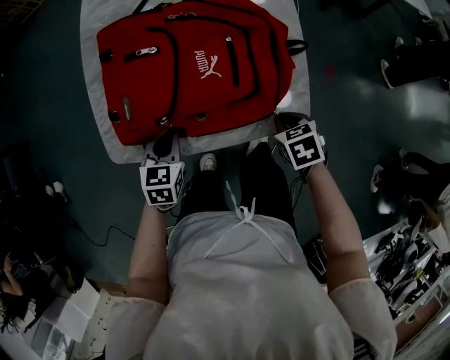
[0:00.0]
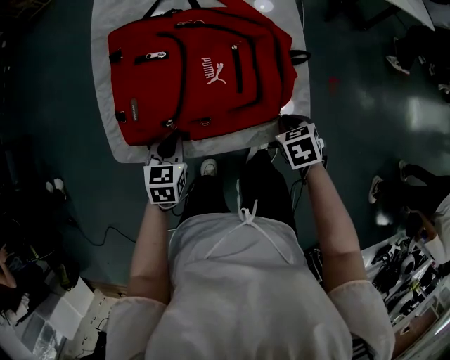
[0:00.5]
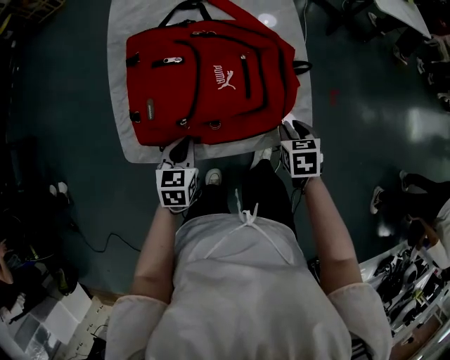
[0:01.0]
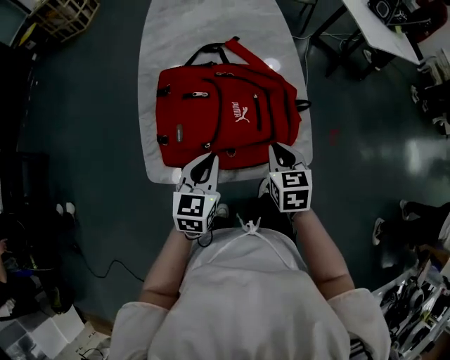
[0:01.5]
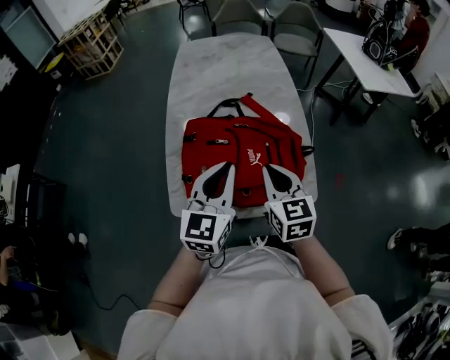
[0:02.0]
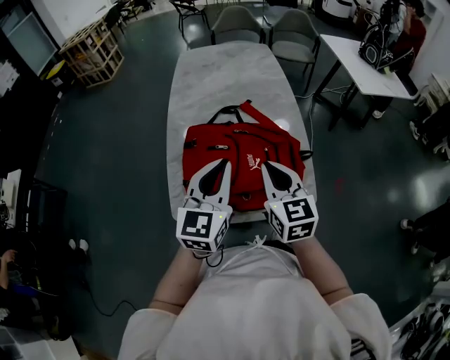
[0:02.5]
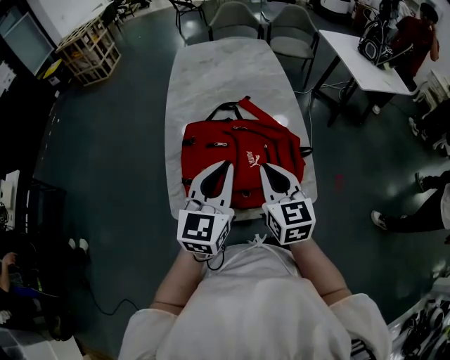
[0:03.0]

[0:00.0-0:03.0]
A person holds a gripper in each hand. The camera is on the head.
0:00.0 to 0:01.5: The right gripper heads upward and to the left, covering roughly 15 cm, rotates about 30 degrees, and opens, then closes again. The left gripper heads upward, covering roughly 15 cm.
0:01.5 to 0:03.0: The left gripper is displaced upward by roughly 20 cm, and swivels some 20 degrees; the right gripper is displaced upward and to the left by roughly 20 cm, and changes its angle by roughly 30 degrees.

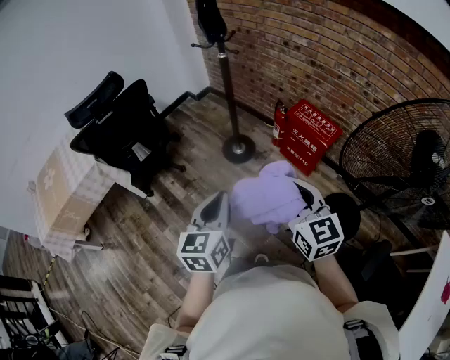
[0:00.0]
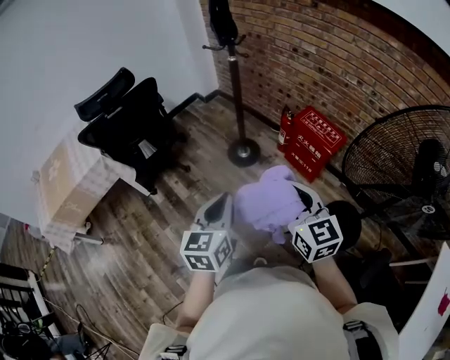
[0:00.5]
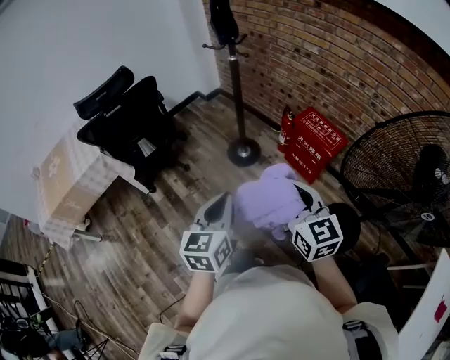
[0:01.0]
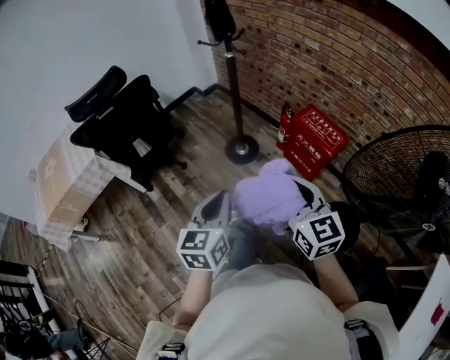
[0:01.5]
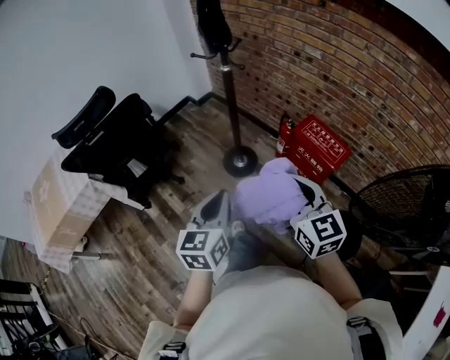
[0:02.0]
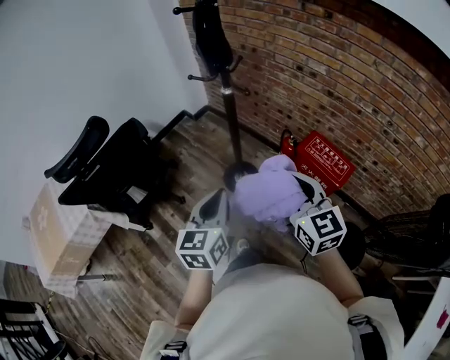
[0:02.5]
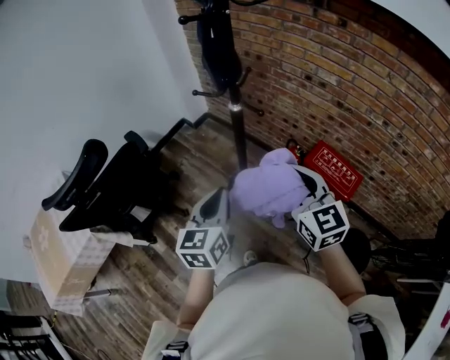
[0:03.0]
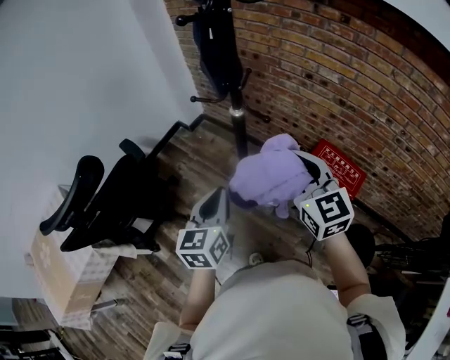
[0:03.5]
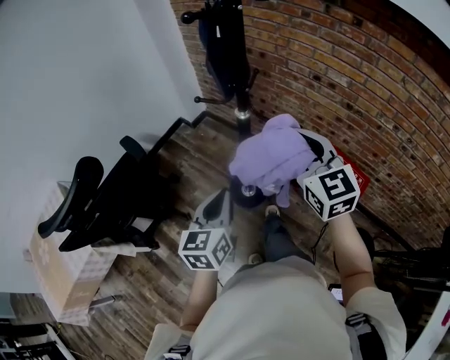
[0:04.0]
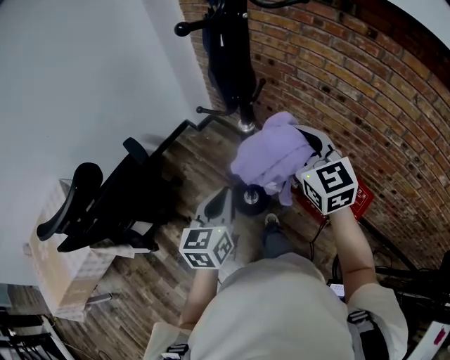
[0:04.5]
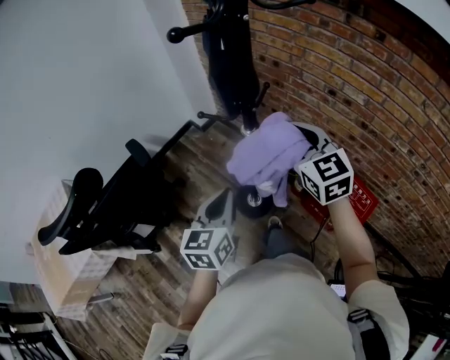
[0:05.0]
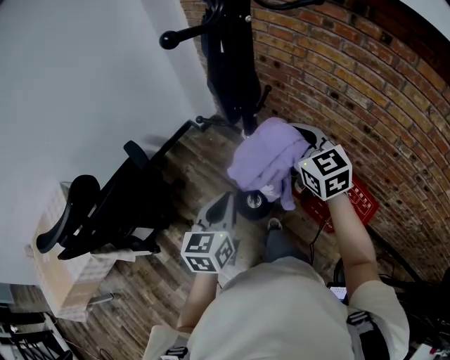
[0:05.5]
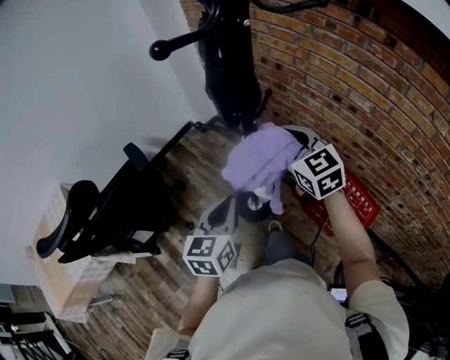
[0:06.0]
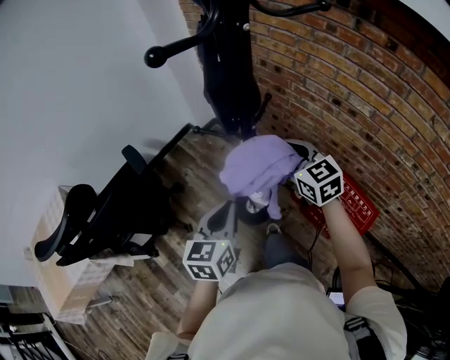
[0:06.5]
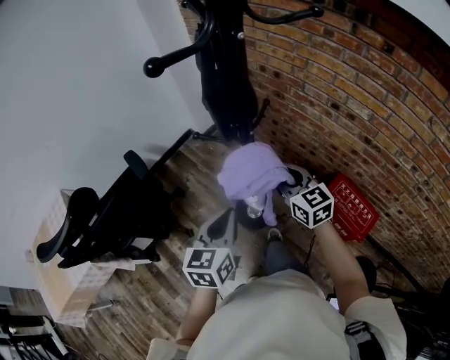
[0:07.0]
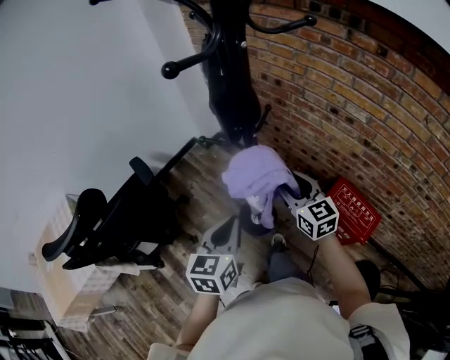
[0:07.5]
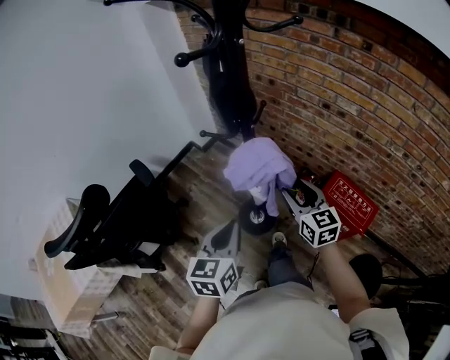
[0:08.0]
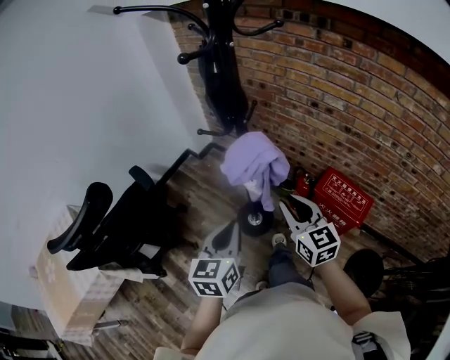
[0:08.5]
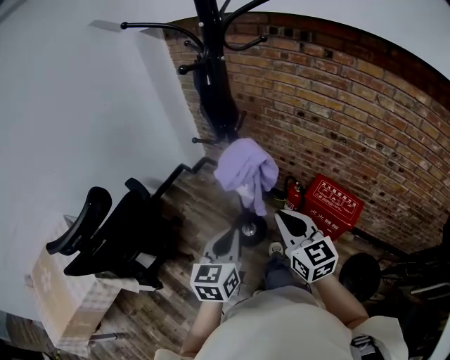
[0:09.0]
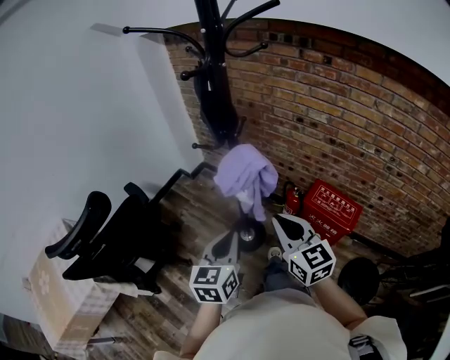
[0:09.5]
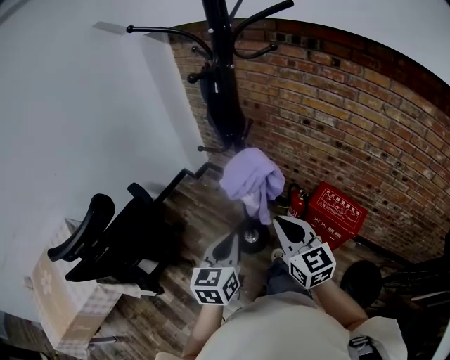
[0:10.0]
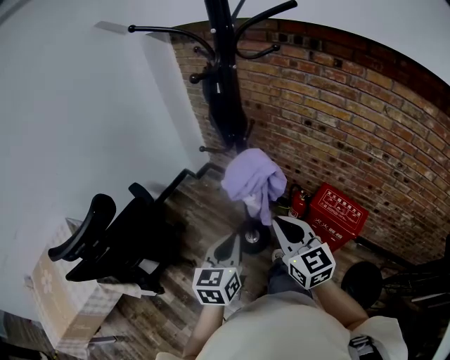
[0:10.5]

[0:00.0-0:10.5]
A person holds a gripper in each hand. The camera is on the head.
0:00.0 to 0:02.0: The grippers both shift forward by approximately 15 cm.
0:02.0 to 0:04.0: The two grippers go roughly 30 cm forward.
0:04.0 to 0:06.5: The right gripper moves forward and downward, roughly 20 cm; the left gripper travels forward by approximately 10 cm.
0:06.5 to 0:08.5: The right gripper is displaced backward by approximately 20 cm, and opens, then closes once more; the left gripper shifts some 10 cm backward.
0:08.5 to 0:10.5: The right gripper shifts by approximately 5 cm.

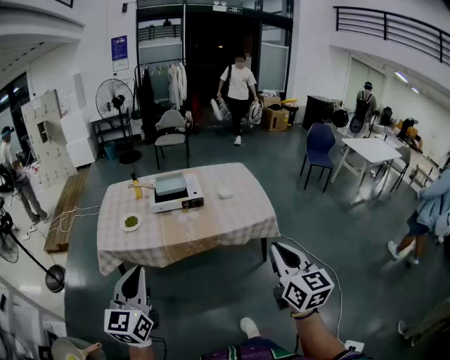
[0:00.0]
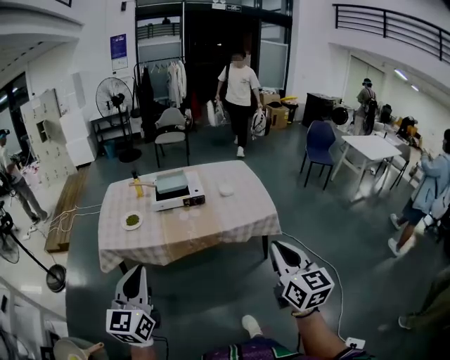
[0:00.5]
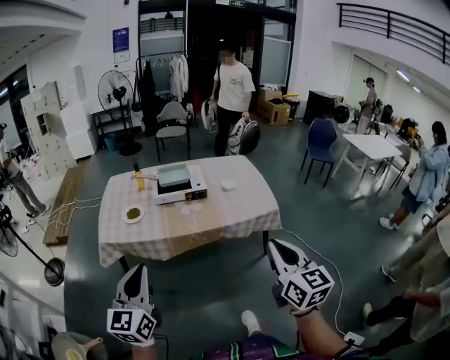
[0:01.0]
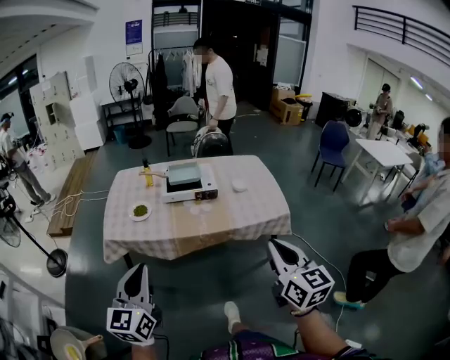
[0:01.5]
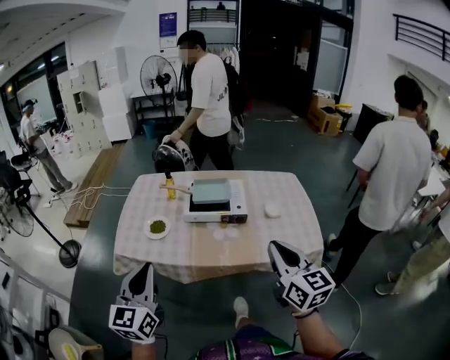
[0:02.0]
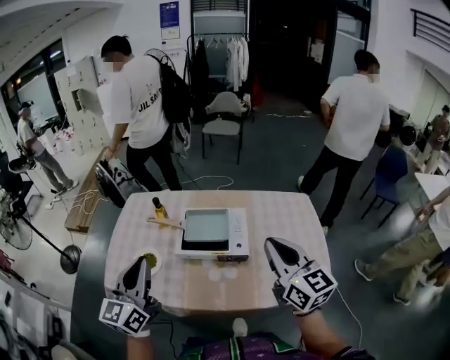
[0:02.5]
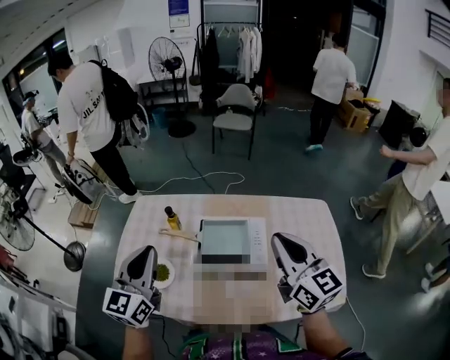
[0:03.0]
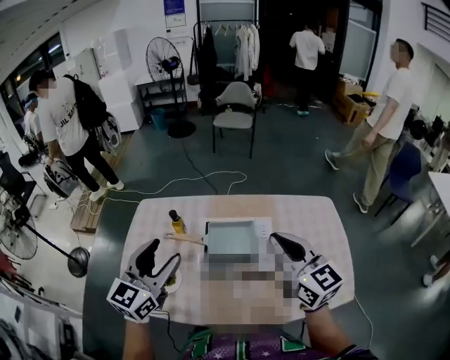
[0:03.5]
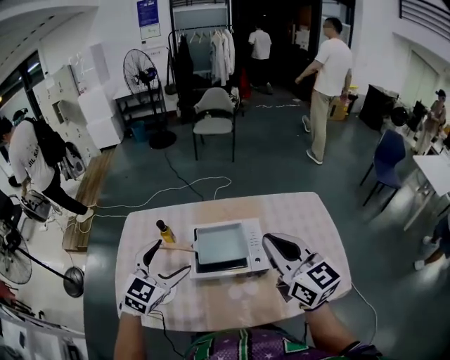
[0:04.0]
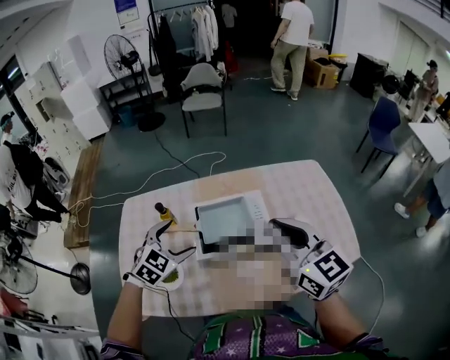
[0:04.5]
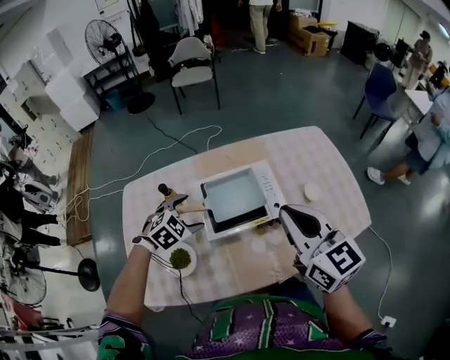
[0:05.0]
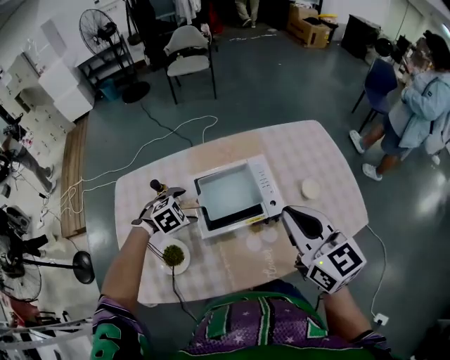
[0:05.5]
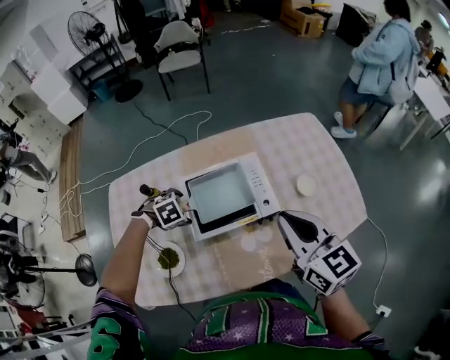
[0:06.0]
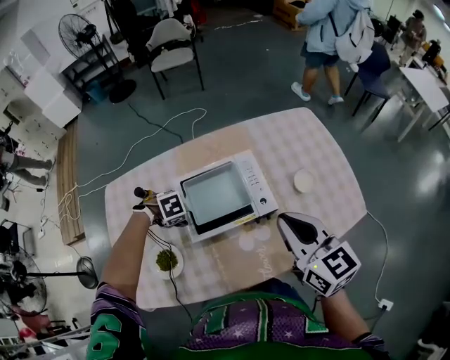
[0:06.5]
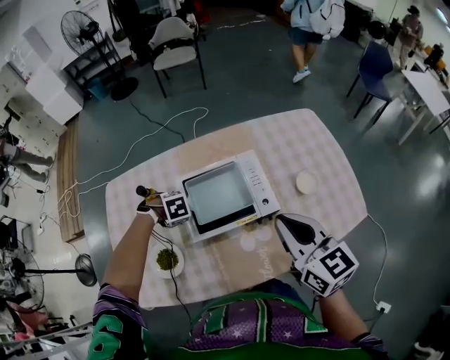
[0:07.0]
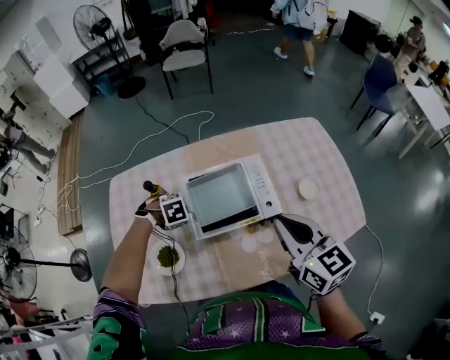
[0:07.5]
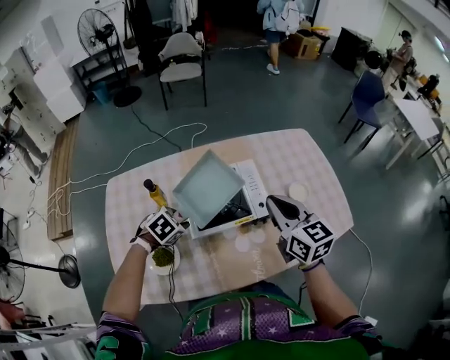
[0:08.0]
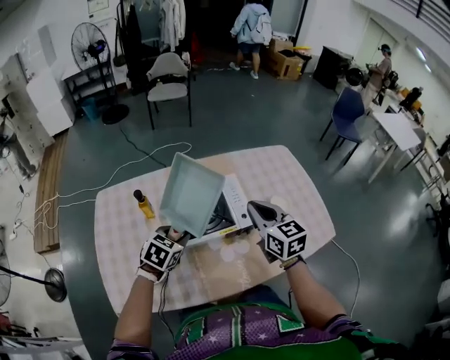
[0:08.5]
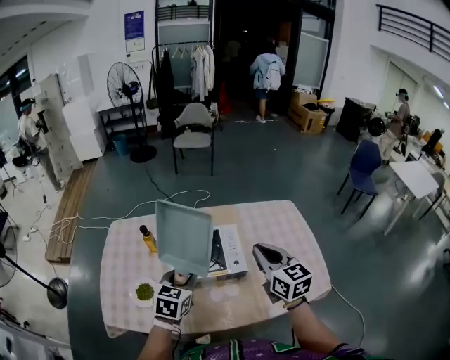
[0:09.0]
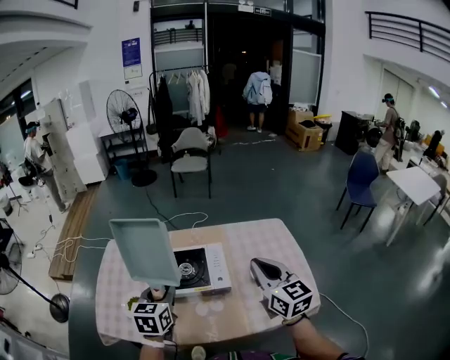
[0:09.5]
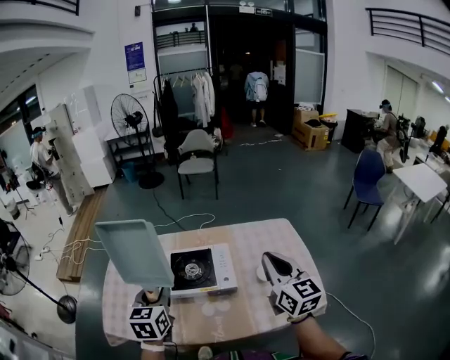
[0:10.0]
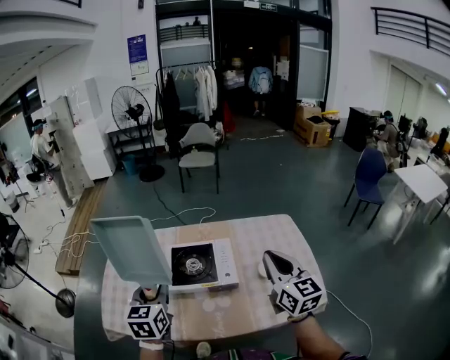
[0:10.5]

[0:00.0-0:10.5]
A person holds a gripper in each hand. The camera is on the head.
0:00.0 to 0:02.0: Both grippers are carried forward, roughly 60 cm.
0:02.0 to 0:04.0: Both grippers are carried forward, approximately 1 m. The left gripper turns by about 40 degrees, and opens.
0:04.0 to 0:06.5: The right gripper travels downward by roughly 20 cm, and swivels about 20 degrees. Meanwhile the left gripper heads downward, covering some 40 cm, and points its fingers roughly 60 degrees further downward.
0:06.5 to 0:08.5: The right gripper shifts by roughly 5 cm, while the left gripper is displaced upward by about 20 cm, points its fingers about 40 degrees further upward, and closes up.
0:08.5 to 0:10.5: The right gripper goes approximately 50 cm to the right, backward and upward. Meanwhile the left gripper travels upward, backward and to the right by roughly 50 cm, and changes its angle by approximately 50 degrees.

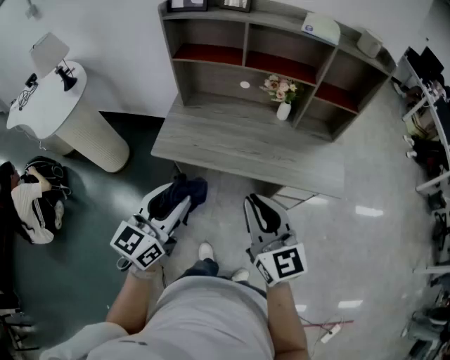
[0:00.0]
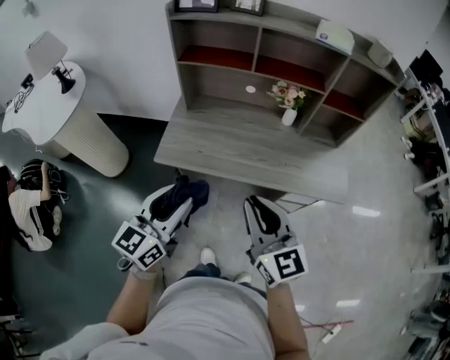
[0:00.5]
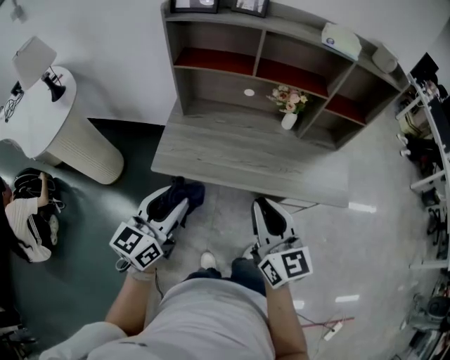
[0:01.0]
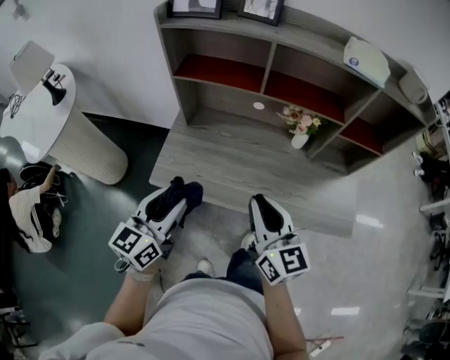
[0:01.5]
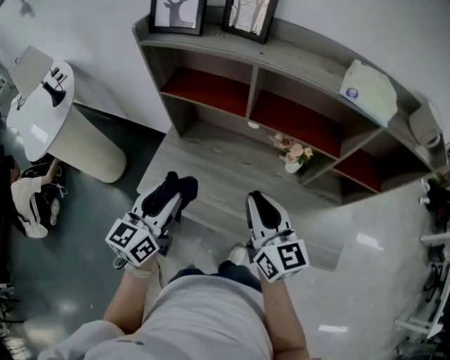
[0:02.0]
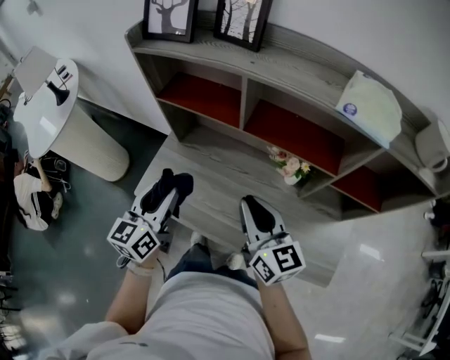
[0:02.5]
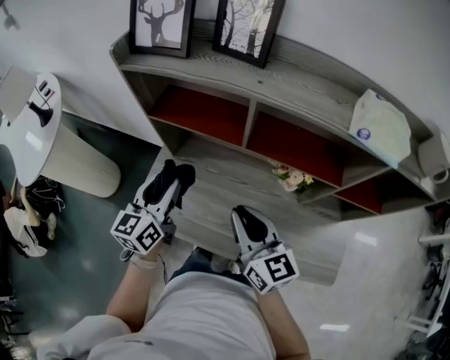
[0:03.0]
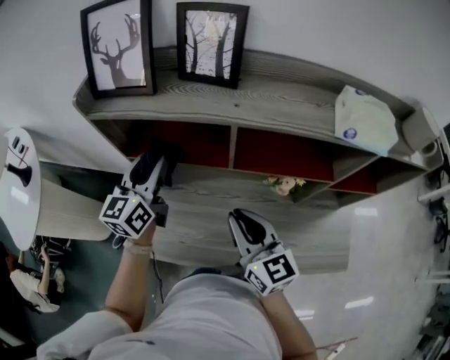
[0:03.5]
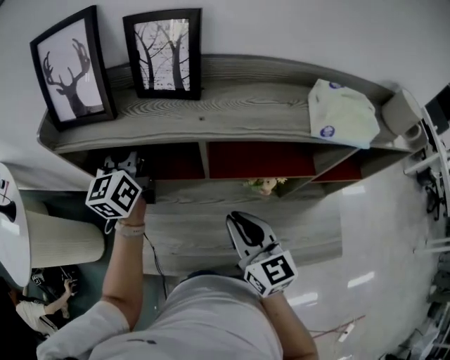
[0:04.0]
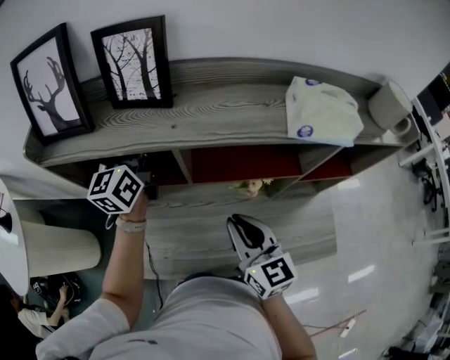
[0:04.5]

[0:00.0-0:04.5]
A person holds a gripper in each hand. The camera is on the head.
0:00.0 to 0:02.0: Both grippers travel together forward, roughly 30 cm.
0:02.0 to 0:04.5: The right gripper heads forward, covering approximately 10 cm, while the left gripper shifts some 40 cm forward.
